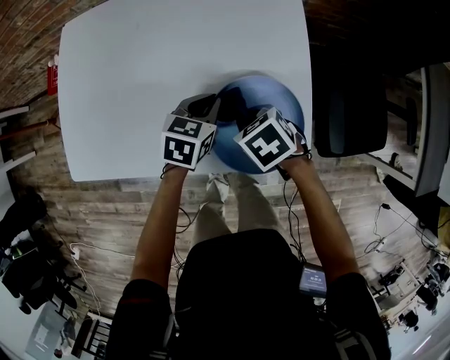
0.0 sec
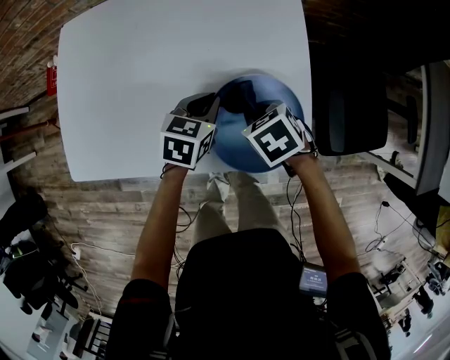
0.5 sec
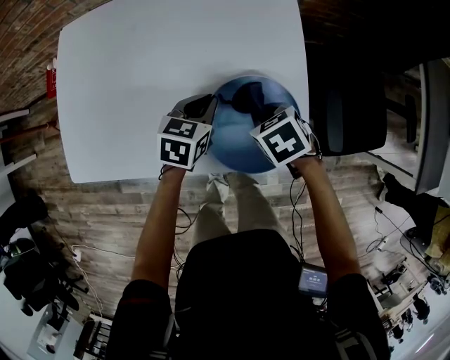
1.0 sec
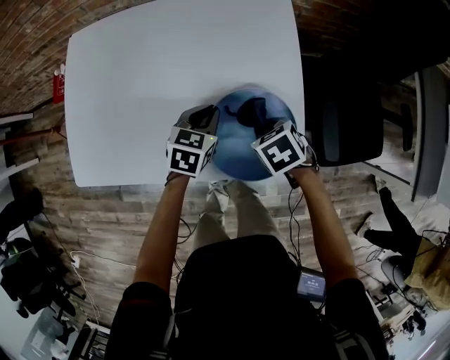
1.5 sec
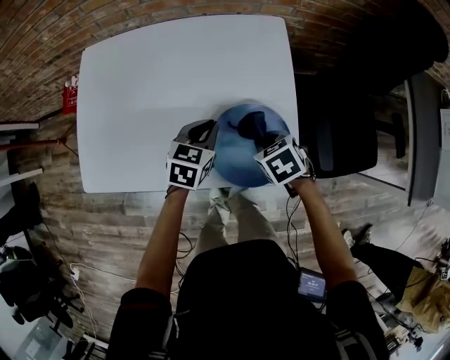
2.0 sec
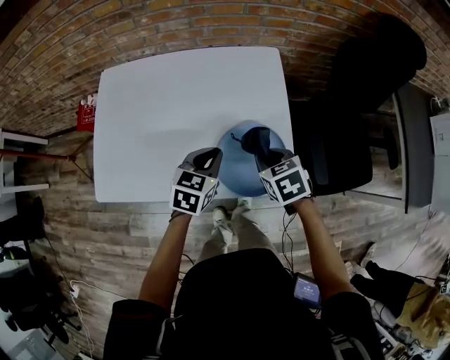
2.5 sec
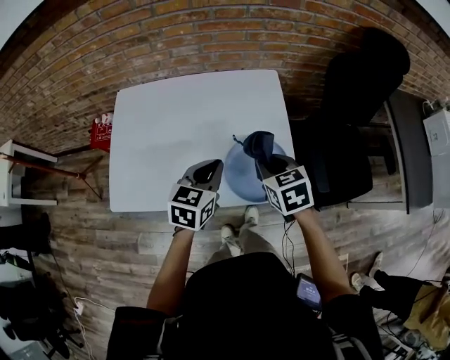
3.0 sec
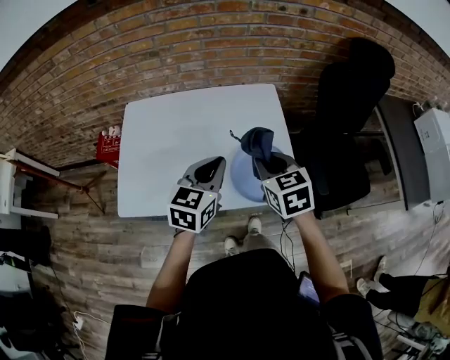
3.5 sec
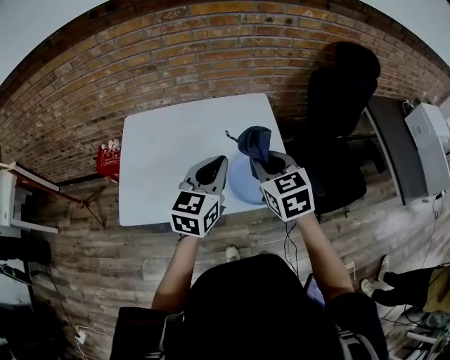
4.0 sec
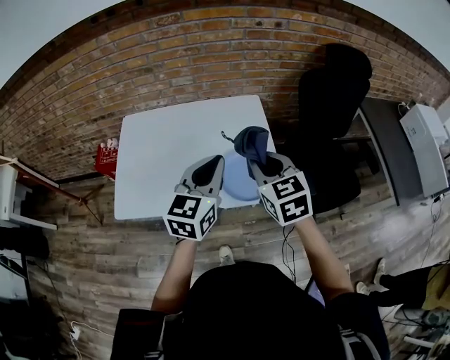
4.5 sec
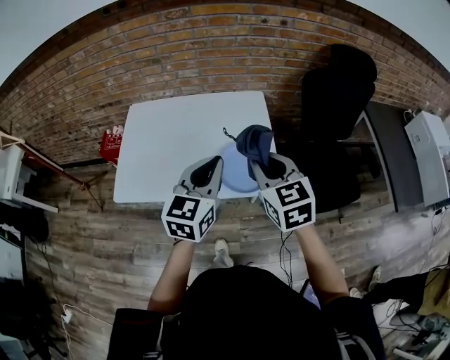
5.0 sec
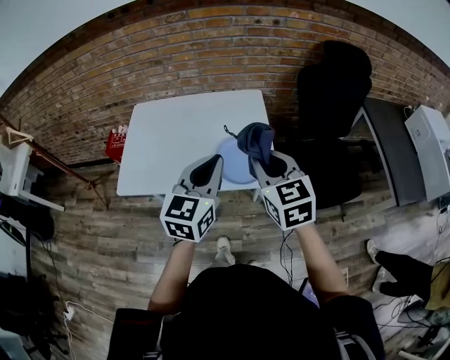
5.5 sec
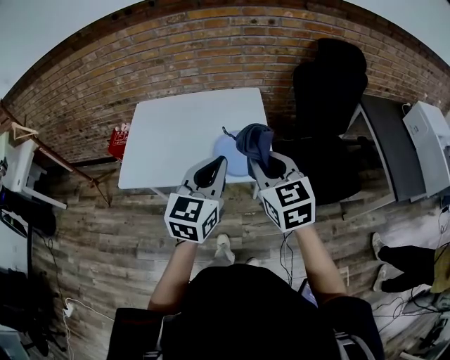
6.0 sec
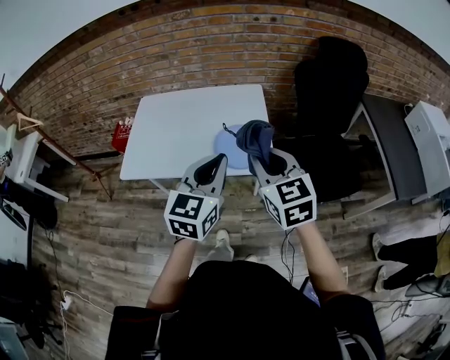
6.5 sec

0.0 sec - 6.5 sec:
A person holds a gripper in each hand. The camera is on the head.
0.0 sec - 2.0 sec: The right gripper travels to the right by about 5 cm.
2.0 sec - 4.5 sec: The right gripper goes about 30 cm upward, and angles its fingers upward, by approximately 40 degrees; the left gripper is displaced upward and backward by some 35 cm, and tips its fingers upward by about 30 degrees.
4.5 sec - 6.5 sec: Both grippers travel together backward and to the right, about 20 cm.

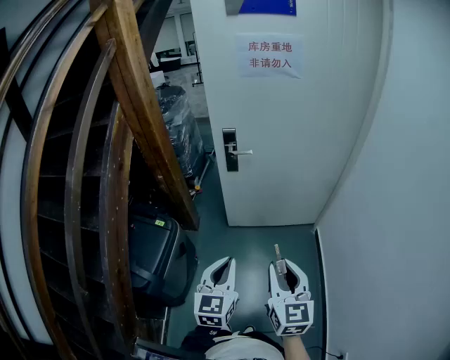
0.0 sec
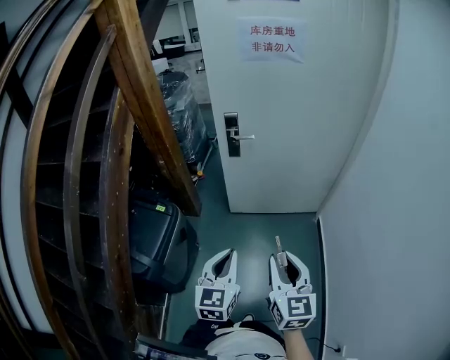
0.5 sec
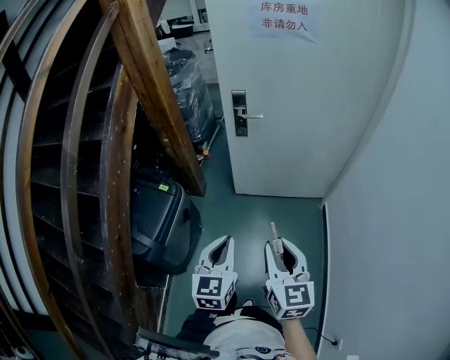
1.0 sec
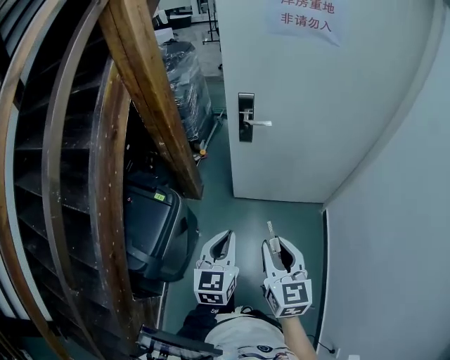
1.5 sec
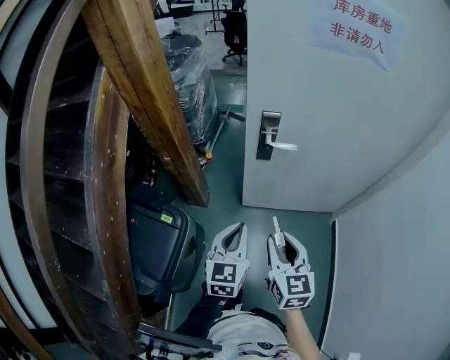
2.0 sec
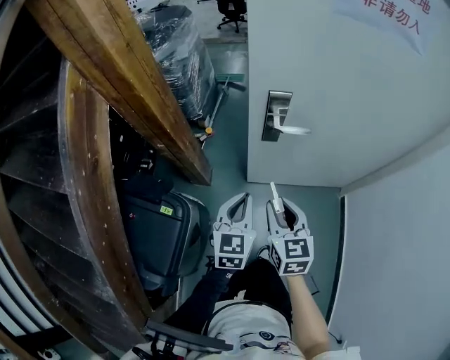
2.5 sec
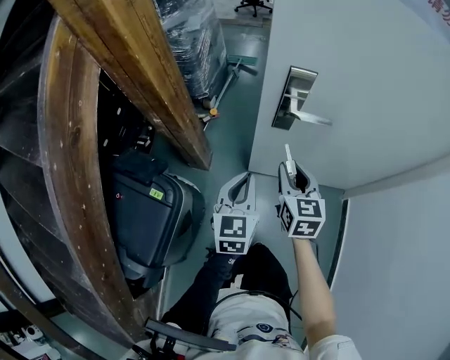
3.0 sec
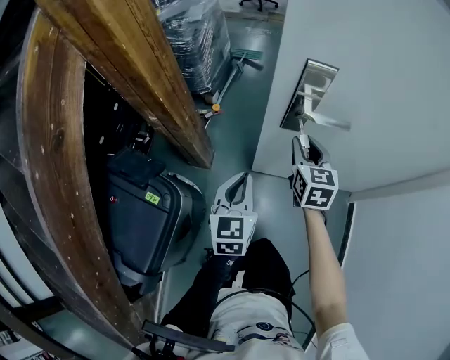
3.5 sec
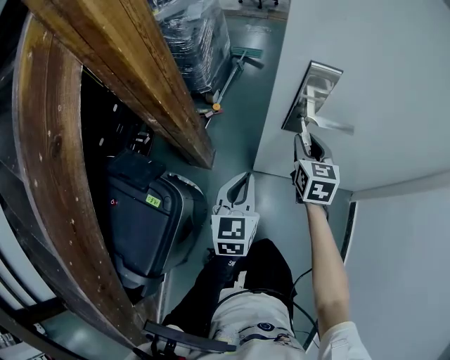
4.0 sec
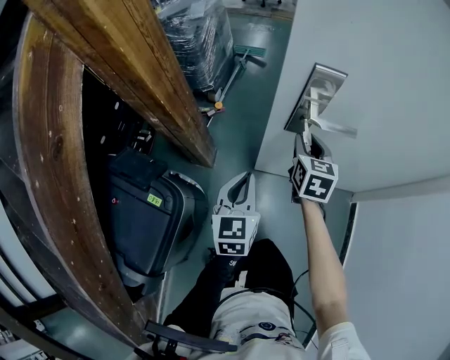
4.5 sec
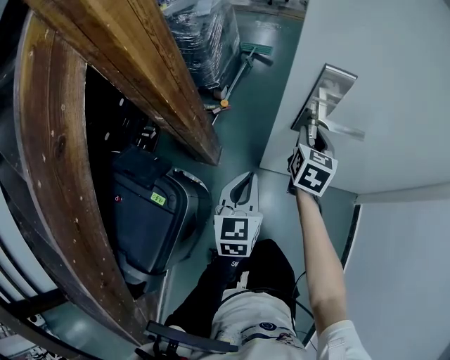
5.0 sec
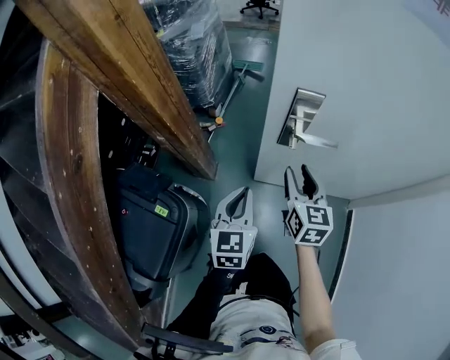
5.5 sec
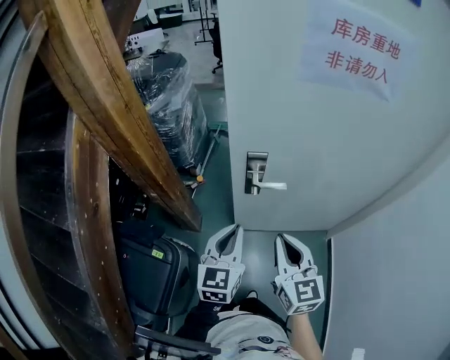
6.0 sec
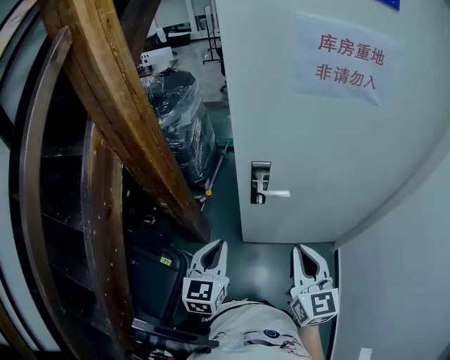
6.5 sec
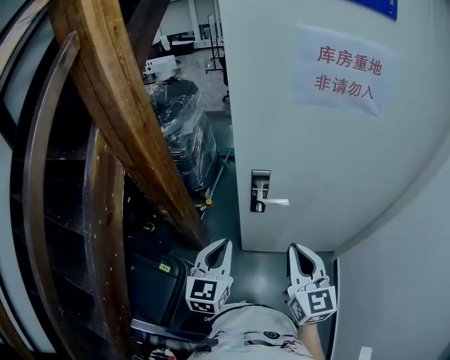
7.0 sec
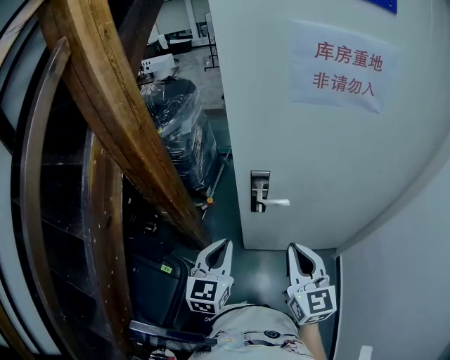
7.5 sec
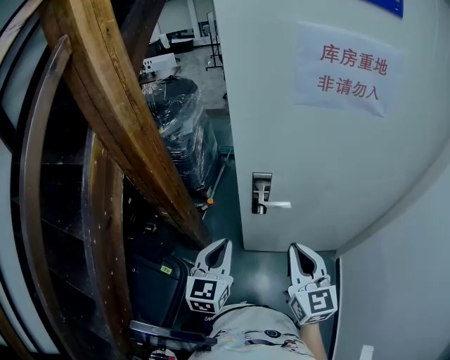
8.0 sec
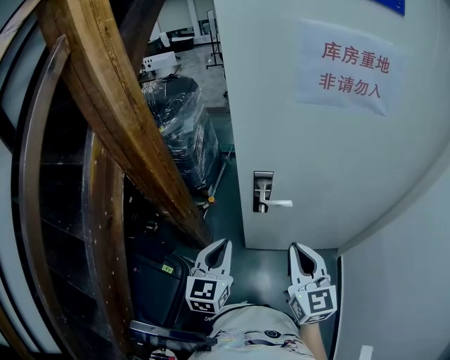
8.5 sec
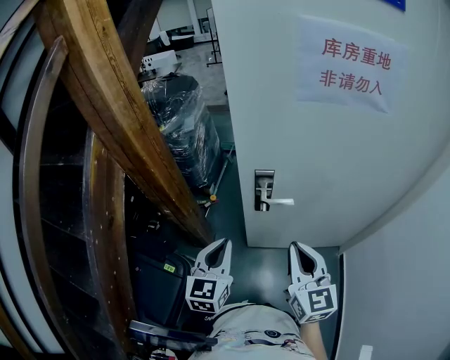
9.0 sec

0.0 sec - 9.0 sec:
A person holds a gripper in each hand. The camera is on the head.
0.0 sec - 2.0 sec: The left gripper moves forward, approximately 30 cm. Meanwhile the right gripper shifts roughly 30 cm forward and to the left.
2.0 sec - 4.5 sec: The left gripper moves forward and downward, some 25 cm; the right gripper shifts some 40 cm forward and downward.
4.5 sec - 7.0 sec: The right gripper travels upward and backward by roughly 40 cm, swivels approximately 30 degrees, and closes up. The left gripper moves upward, some 25 cm.
7.0 sec - 9.0 sec: The grippers move only a little.

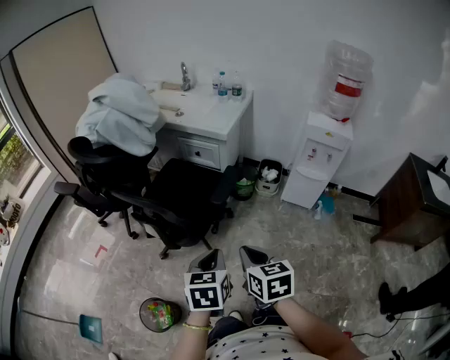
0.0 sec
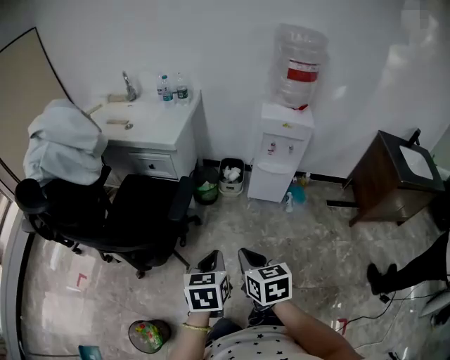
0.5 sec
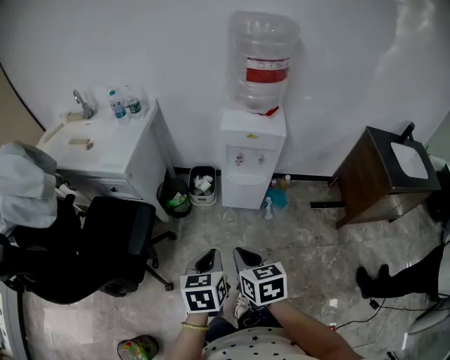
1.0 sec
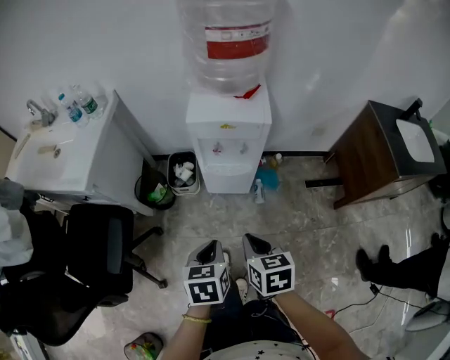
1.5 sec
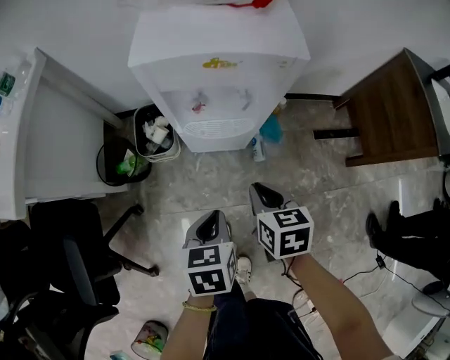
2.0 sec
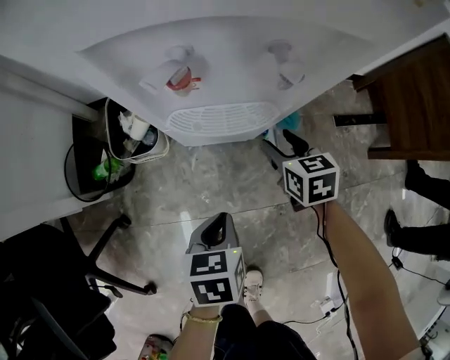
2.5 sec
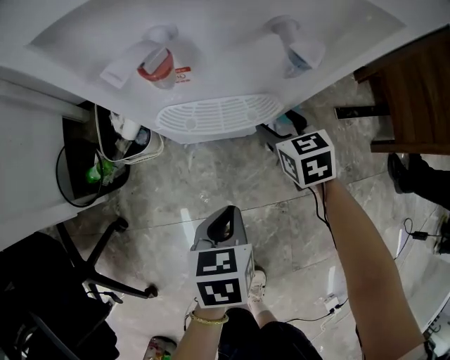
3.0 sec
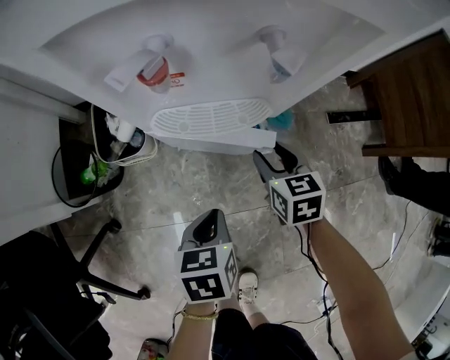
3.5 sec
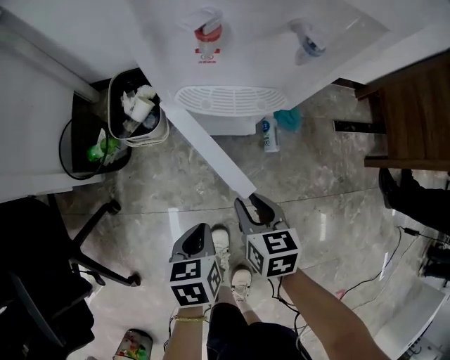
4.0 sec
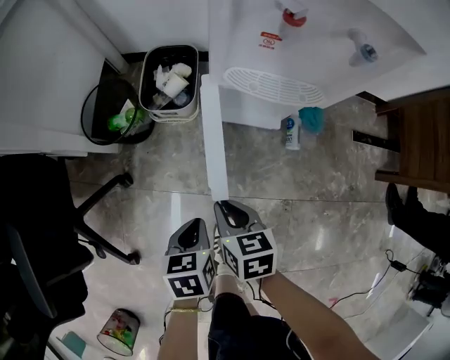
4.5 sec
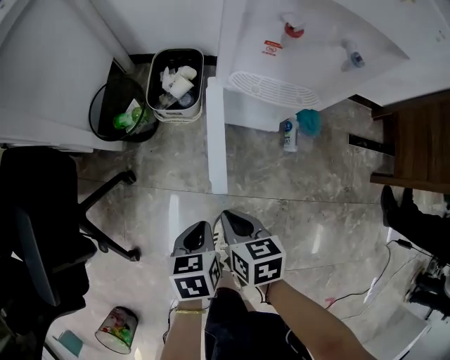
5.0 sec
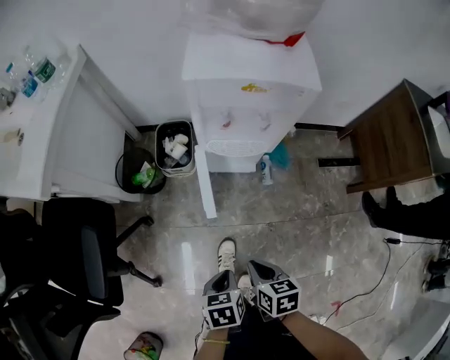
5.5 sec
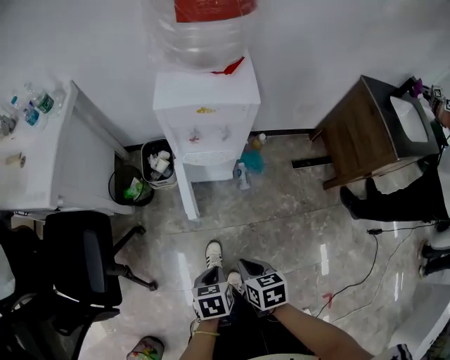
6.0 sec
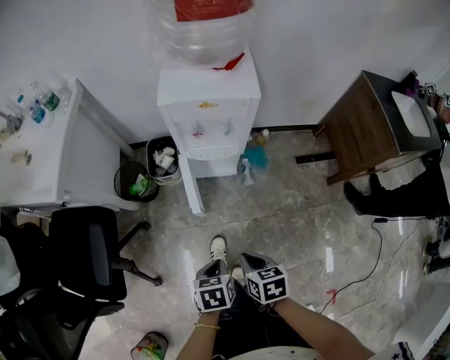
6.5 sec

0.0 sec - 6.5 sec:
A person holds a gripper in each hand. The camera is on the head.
0.0 sec - 2.0 sec: Both grippers are carried about 60 cm. The right gripper changes its angle by some 30 degrees, while the left gripper swivels roughly 30 degrees.
2.0 sec - 4.5 sec: Both grippers travel together downward and to the left, about 30 cm. The right gripper travels forward and back again, roughly 20 cm each way, and opens and closes again.
4.5 sec - 6.5 sec: The two grippers go about 35 cm upward and backward.

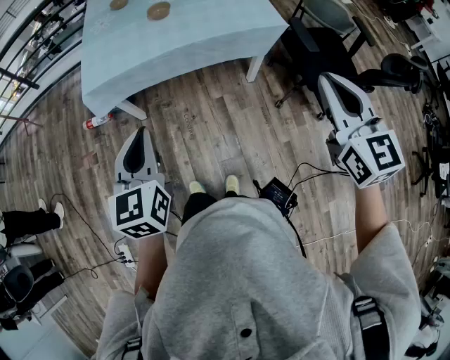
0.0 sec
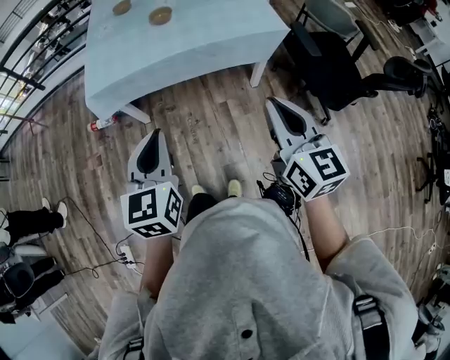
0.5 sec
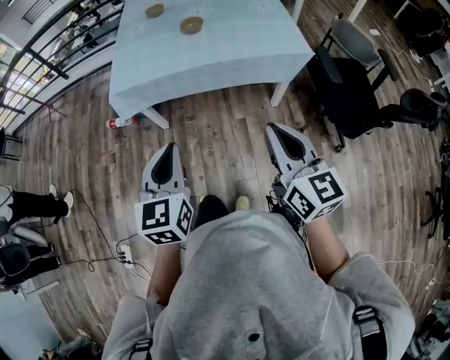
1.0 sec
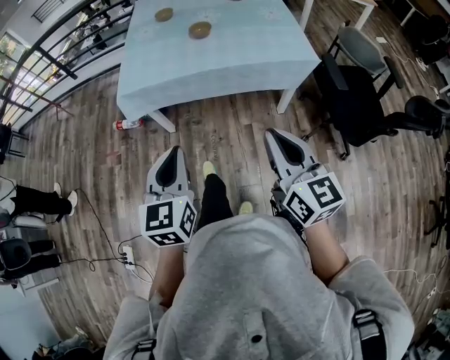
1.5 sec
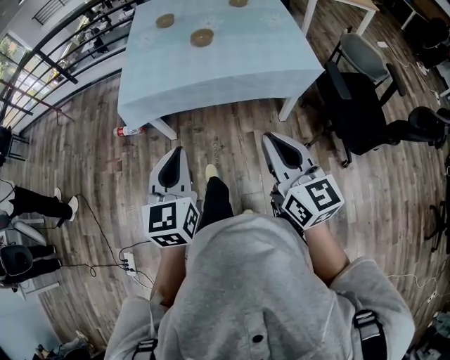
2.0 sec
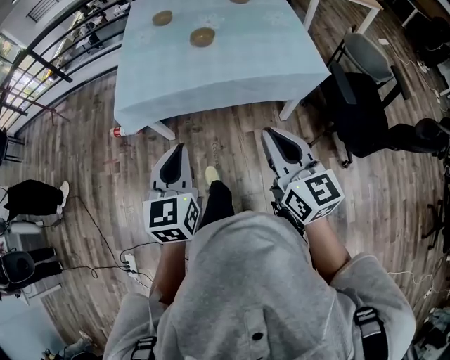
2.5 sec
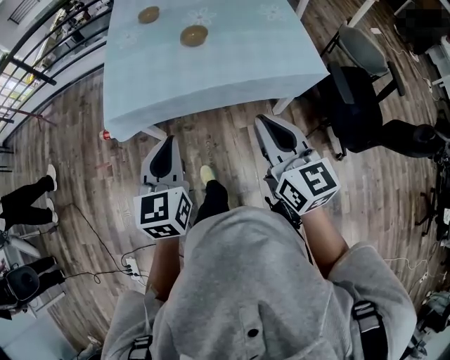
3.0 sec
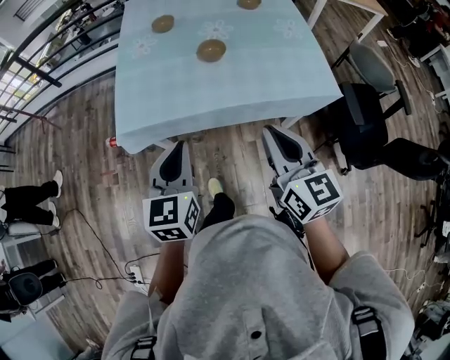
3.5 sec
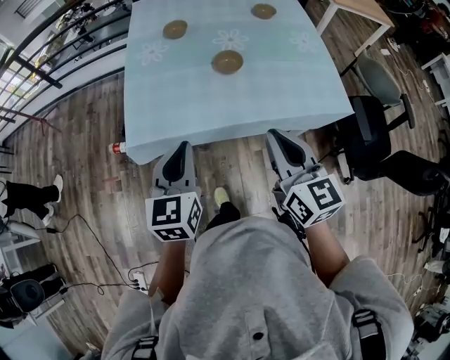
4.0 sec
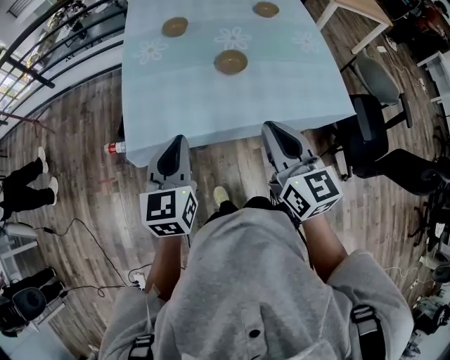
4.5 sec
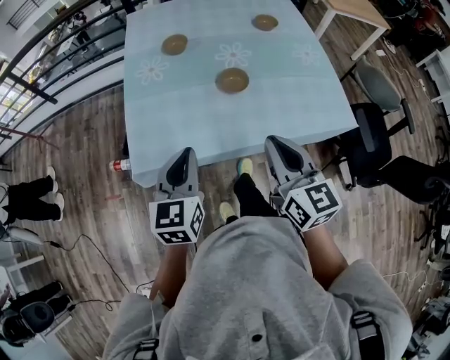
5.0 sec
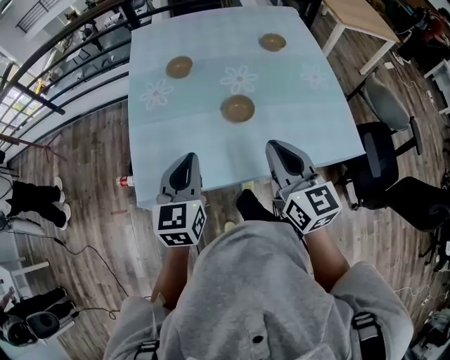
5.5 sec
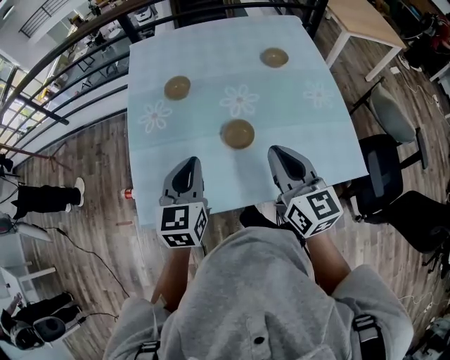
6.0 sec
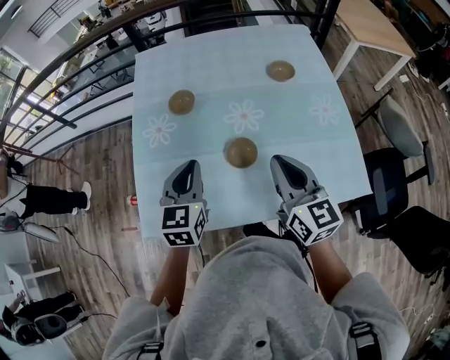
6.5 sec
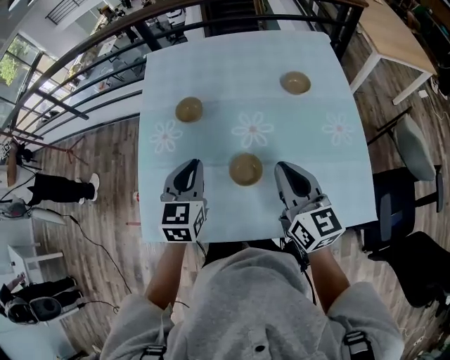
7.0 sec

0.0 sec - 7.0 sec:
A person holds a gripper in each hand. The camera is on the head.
0.0 sec - 2.0 sec: The right gripper goes approximately 15 cm to the left and downward, and rotates approximately 30 degrees.
2.0 sec - 3.5 sec: The two grippers go some 25 cm forward.
3.5 sec - 5.0 sec: The grippers both shift forward and to the left by roughly 15 cm.
5.0 sec - 7.0 sec: The right gripper heads forward and to the right, covering roughly 30 cm; the left gripper is displaced forward by about 30 cm.
